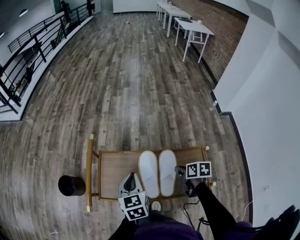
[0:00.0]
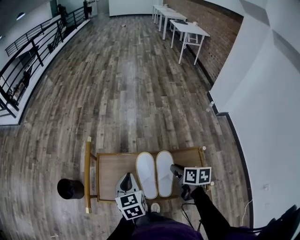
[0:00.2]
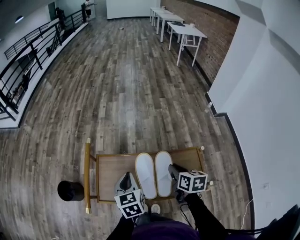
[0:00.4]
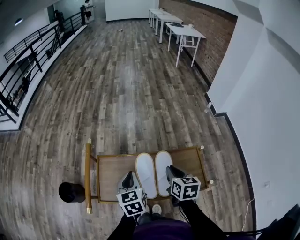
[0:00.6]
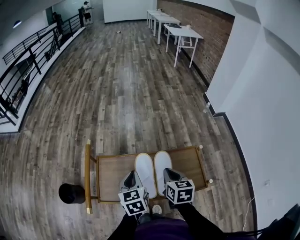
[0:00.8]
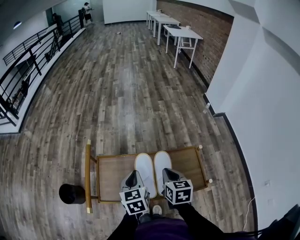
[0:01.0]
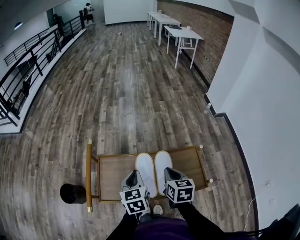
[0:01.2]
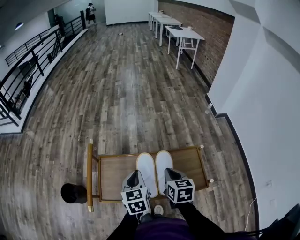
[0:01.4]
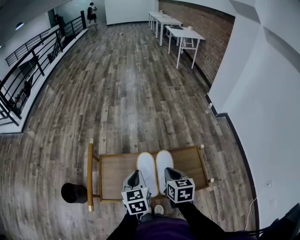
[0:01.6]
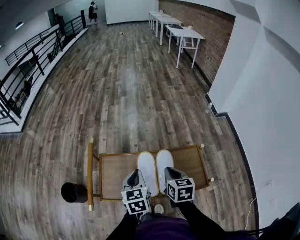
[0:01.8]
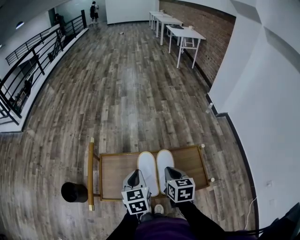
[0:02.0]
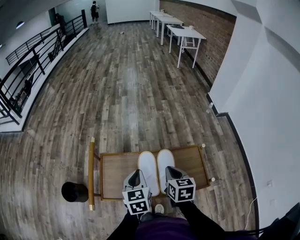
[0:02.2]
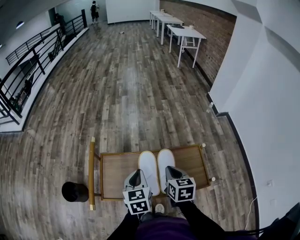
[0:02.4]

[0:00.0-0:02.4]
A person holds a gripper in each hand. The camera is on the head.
0:00.0 to 0:01.2: The right gripper goes about 10 cm upward and to the left, and changes its angle by about 30 degrees.
0:01.2 to 0:02.4: Both grippers stay about where they are.

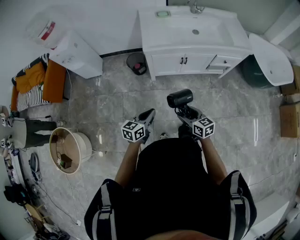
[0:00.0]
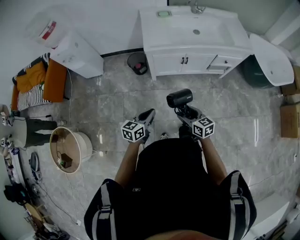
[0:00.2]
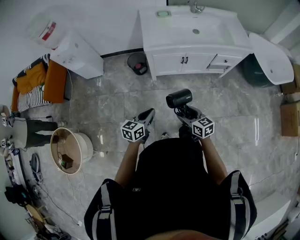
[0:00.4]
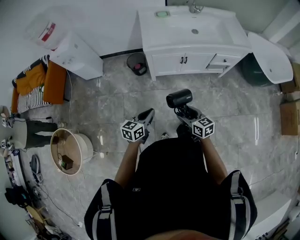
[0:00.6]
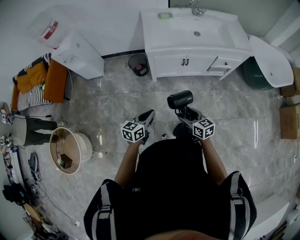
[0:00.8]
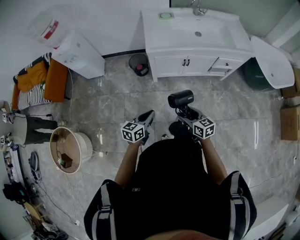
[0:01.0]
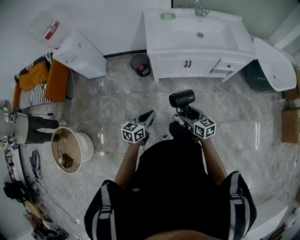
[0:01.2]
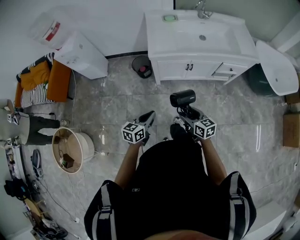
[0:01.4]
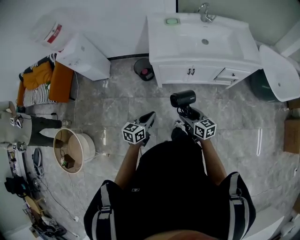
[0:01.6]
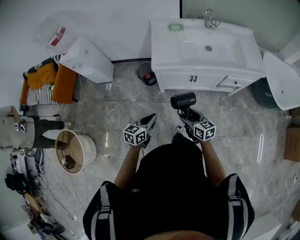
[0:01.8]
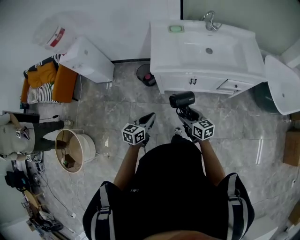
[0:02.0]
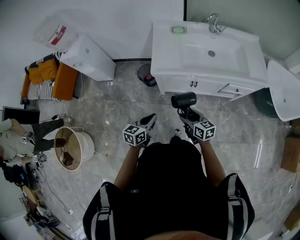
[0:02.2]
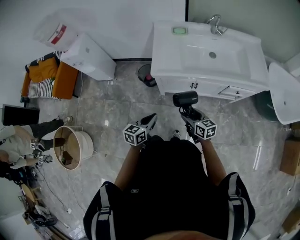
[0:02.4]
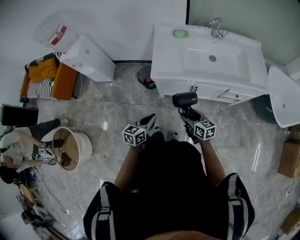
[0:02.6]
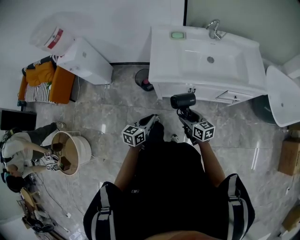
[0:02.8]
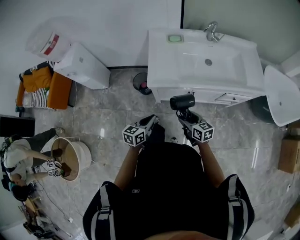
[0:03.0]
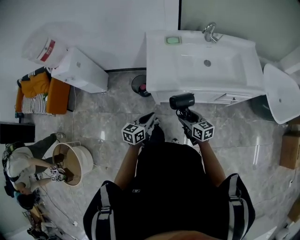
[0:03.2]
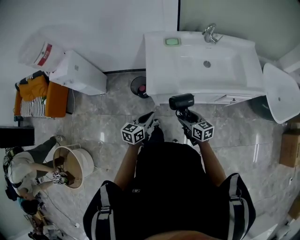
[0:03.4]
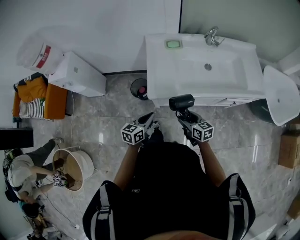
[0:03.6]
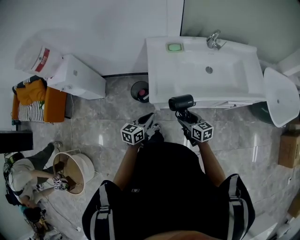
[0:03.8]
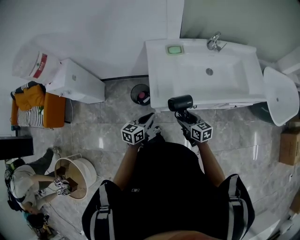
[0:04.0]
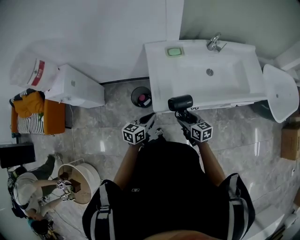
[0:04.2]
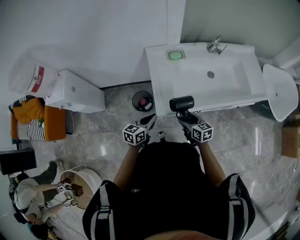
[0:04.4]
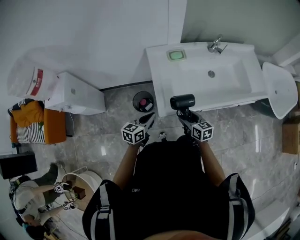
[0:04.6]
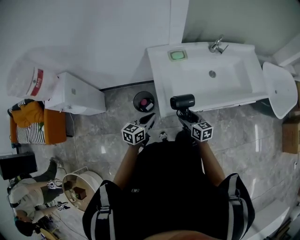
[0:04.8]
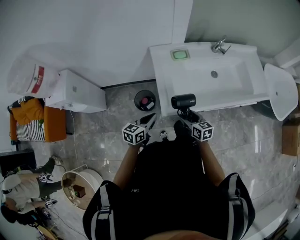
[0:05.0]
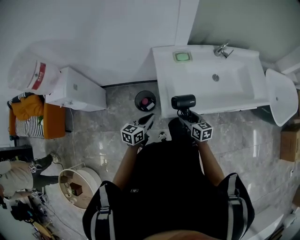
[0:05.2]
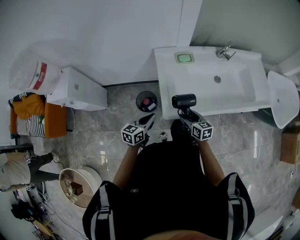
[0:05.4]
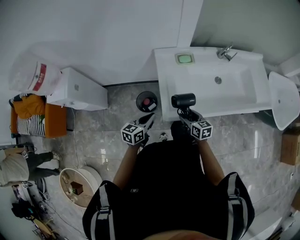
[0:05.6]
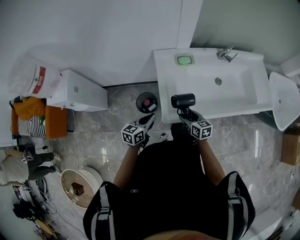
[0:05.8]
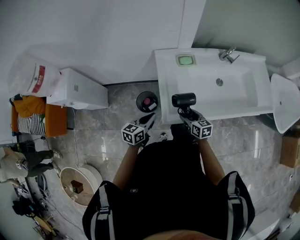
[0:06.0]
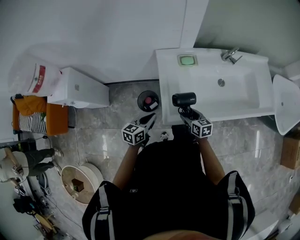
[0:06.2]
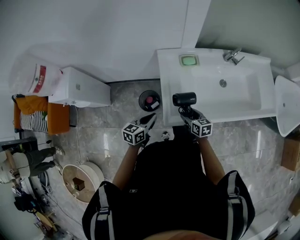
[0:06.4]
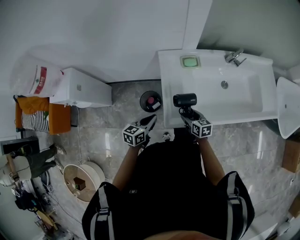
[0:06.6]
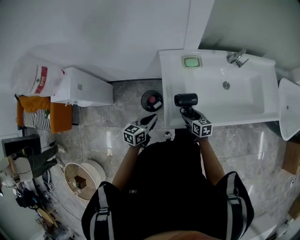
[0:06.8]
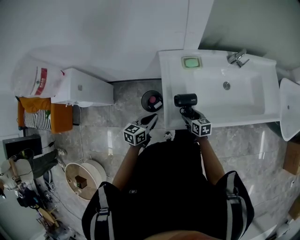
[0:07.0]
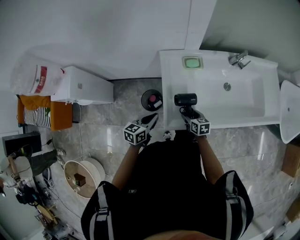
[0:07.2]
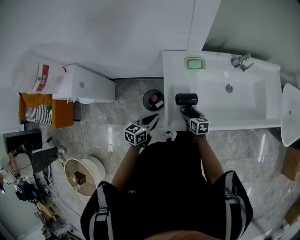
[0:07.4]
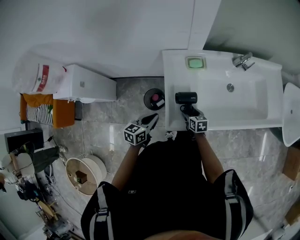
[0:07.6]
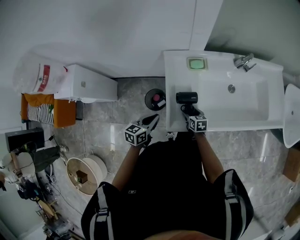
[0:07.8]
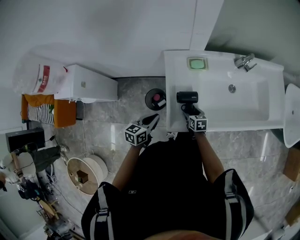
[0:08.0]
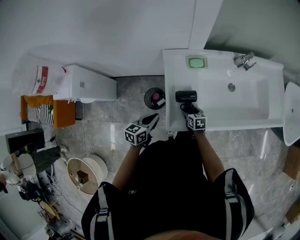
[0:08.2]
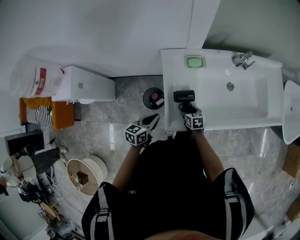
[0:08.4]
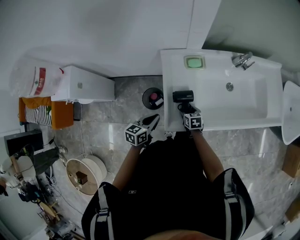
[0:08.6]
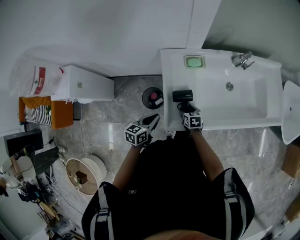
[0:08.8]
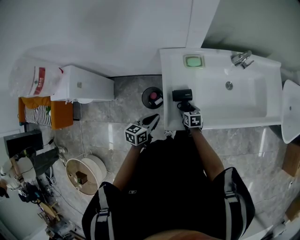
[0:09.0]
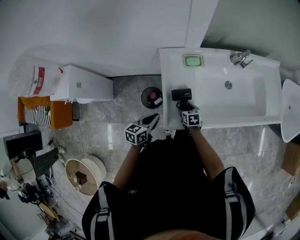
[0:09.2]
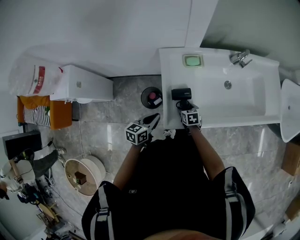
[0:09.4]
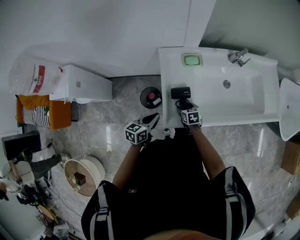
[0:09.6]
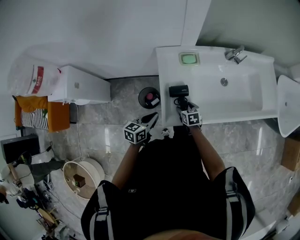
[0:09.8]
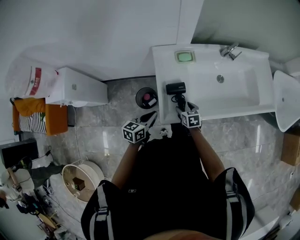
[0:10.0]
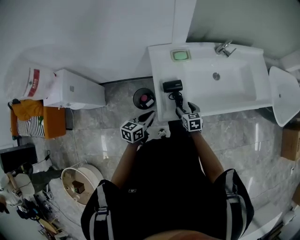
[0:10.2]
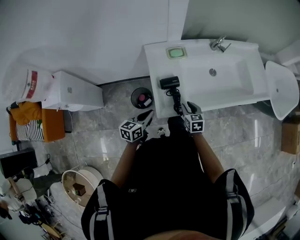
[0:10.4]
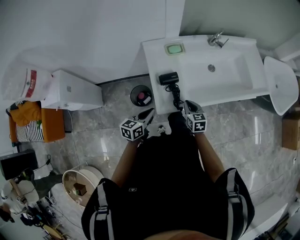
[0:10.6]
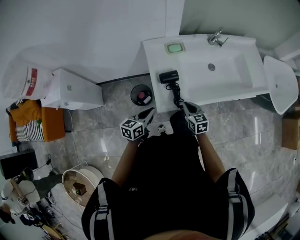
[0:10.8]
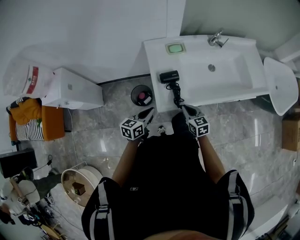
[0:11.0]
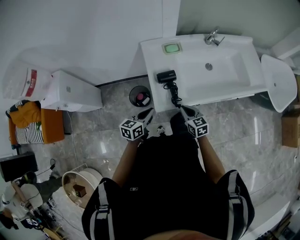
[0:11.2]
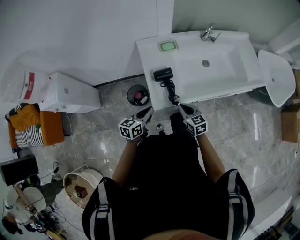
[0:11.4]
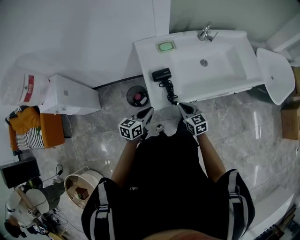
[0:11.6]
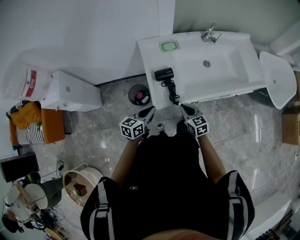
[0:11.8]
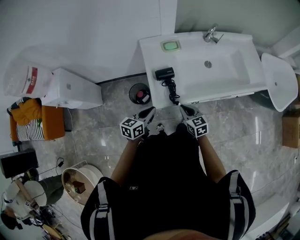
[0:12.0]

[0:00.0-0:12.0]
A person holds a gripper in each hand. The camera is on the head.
0:00.0 to 0:01.6: The grippers both shift forward by approximately 10 cm.
0:01.6 to 0:03.0: The grippers both shift forward by about 15 cm.
0:03.0 to 0:04.4: Both grippers move forward and to the left, approximately 20 cm.
0:04.4 to 0:06.0: Both grippers travel together forward, approximately 10 cm.
0:06.0 to 0:07.6: The right gripper moves downward and forward, some 10 cm.
0:07.6 to 0:09.0: There are only small adjustments of the grippers.
0:09.0 to 0:10.4: The left gripper goes approximately 5 cm backward, while the right gripper shifts approximately 15 cm upward, backward and to the right.
0:10.4 to 0:12.0: The right gripper heads backward, covering about 10 cm, and closes; the left gripper changes place by about 5 cm.

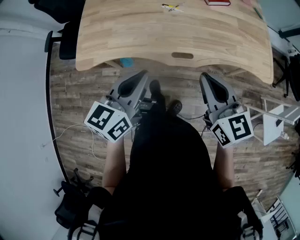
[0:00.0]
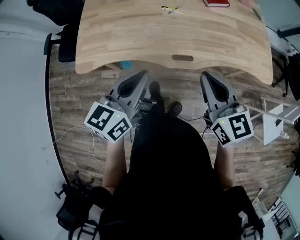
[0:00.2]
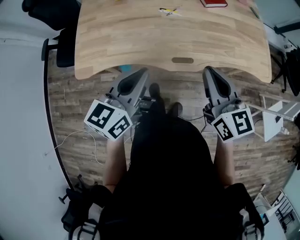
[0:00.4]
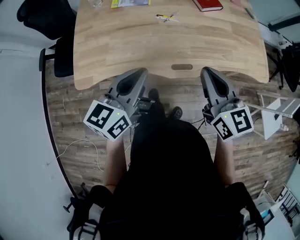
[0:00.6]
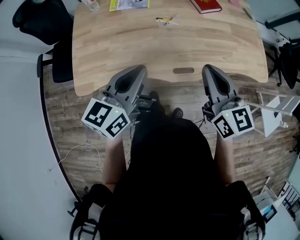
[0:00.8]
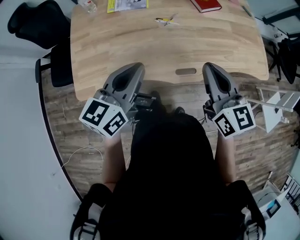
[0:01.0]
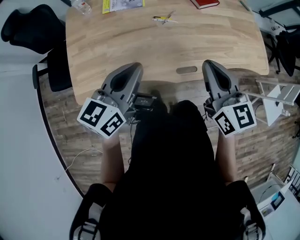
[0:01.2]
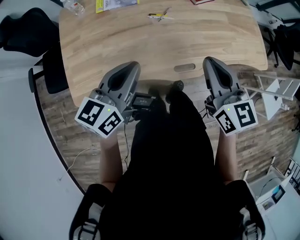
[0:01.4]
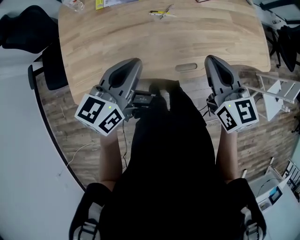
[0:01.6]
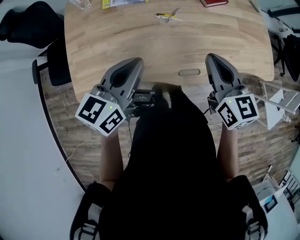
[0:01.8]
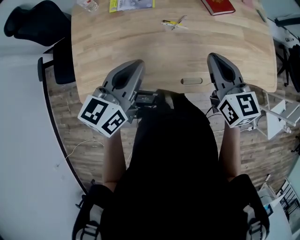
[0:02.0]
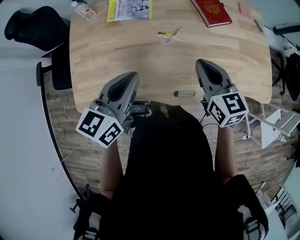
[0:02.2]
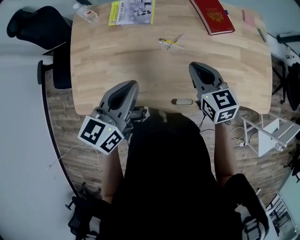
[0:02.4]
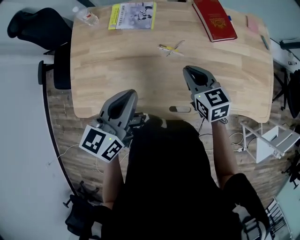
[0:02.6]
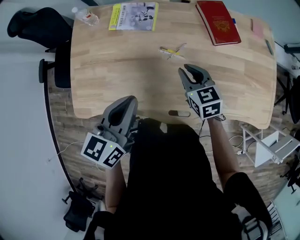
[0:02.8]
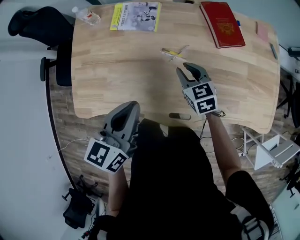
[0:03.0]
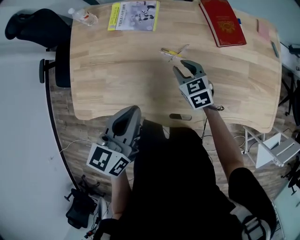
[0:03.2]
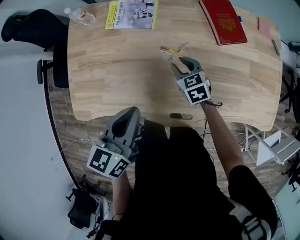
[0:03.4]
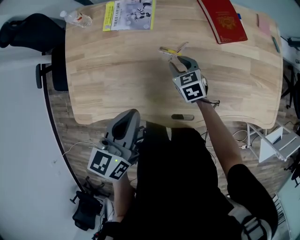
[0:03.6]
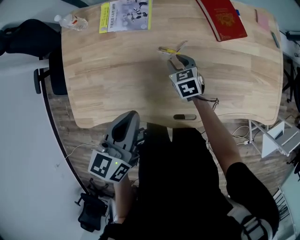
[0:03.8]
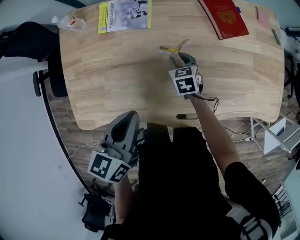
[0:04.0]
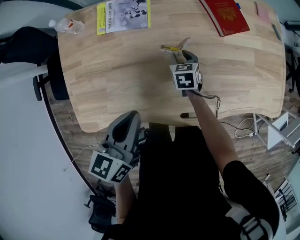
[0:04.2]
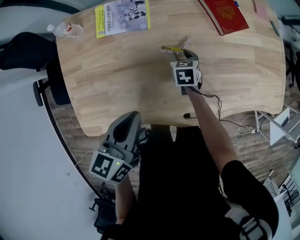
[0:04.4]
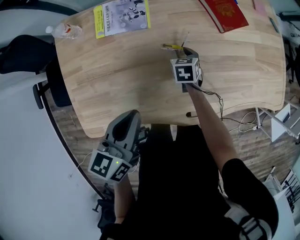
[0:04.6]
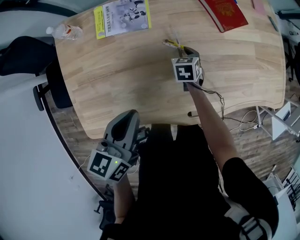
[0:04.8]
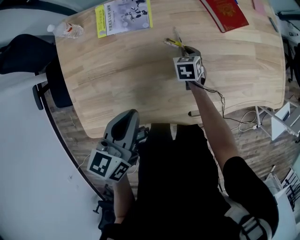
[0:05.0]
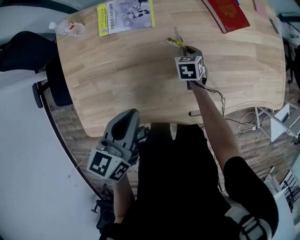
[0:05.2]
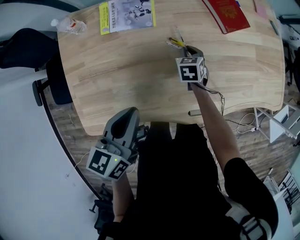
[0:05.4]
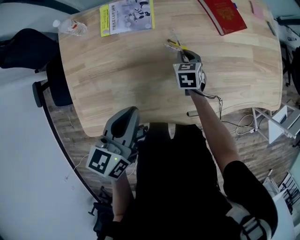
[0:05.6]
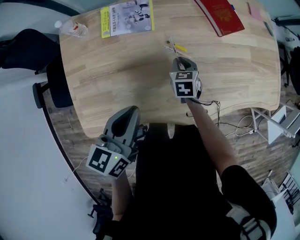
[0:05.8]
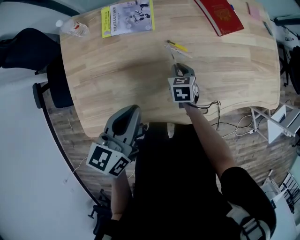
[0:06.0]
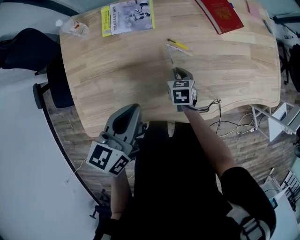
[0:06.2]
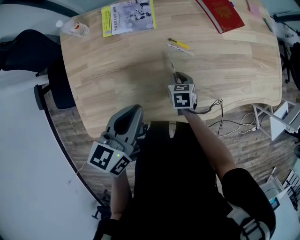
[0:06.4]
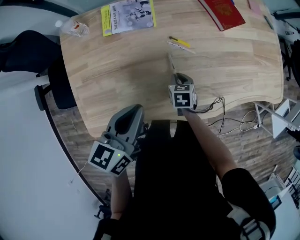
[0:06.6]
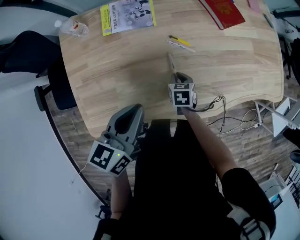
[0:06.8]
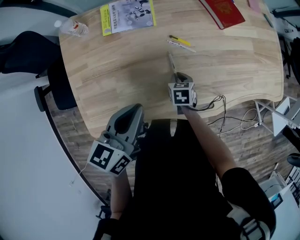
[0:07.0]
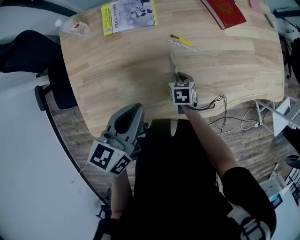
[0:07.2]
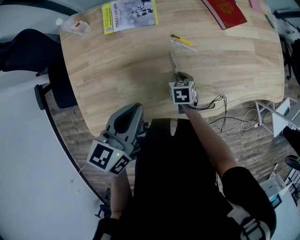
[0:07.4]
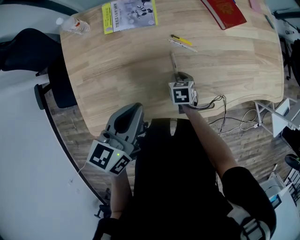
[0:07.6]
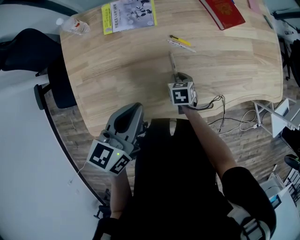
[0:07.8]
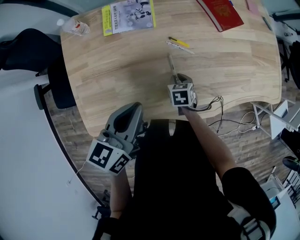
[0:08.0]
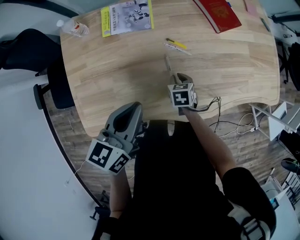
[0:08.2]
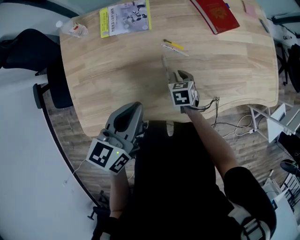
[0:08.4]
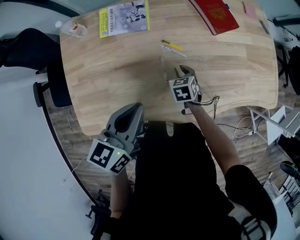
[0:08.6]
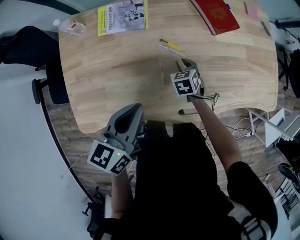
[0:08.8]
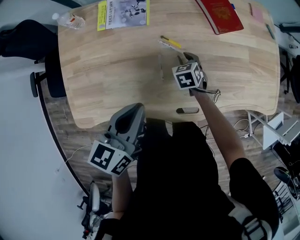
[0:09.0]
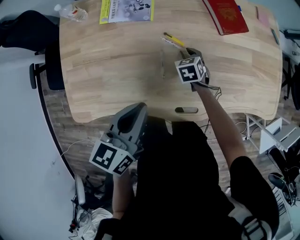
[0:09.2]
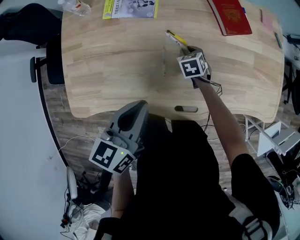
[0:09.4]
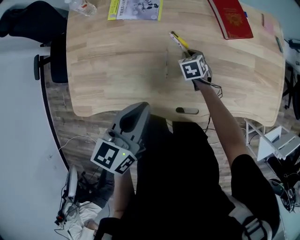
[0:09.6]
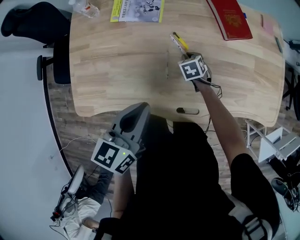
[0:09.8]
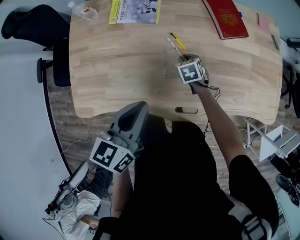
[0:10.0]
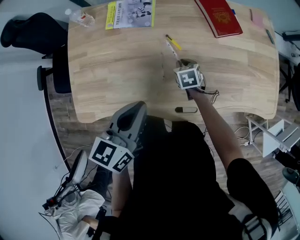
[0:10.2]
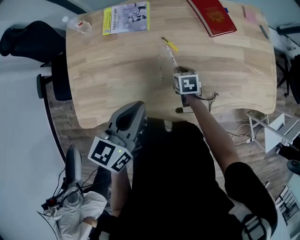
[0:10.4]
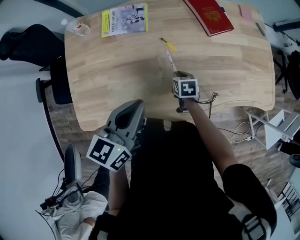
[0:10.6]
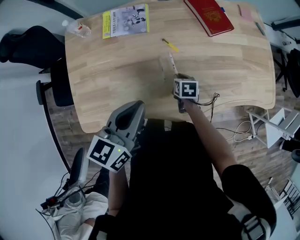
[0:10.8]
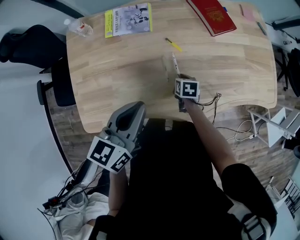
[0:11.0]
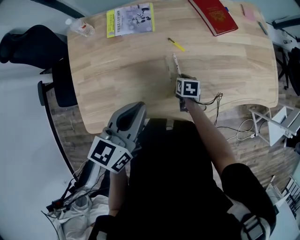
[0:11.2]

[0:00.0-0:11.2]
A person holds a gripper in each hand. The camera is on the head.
0:00.0 to 0:01.6: Both grippers travel together forward and to the left, roughly 20 cm.
0:01.6 to 0:03.2: The right gripper goes some 30 cm forward and downward, swivels some 40 degrees, and opens. The left gripper shifts approximately 10 cm forward, and swivels roughly 20 degrees.
0:03.2 to 0:04.8: The left gripper ends up roughly 10 cm from where it was; the right gripper is displaced downward by approximately 10 cm, and changes its angle by roughly 40 degrees.
0:04.8 to 0:06.4: The right gripper shifts some 15 cm backward.
0:06.4 to 0:08.0: The grippers make only small movements.
0:08.0 to 0:09.6: The right gripper is displaced forward and to the right by roughly 15 cm, and changes its angle by approximately 20 degrees. The left gripper is displaced to the right by about 10 cm.
0:09.6 to 0:11.2: The right gripper goes roughly 10 cm backward, and swivels about 40 degrees, while the left gripper moves to the left, some 5 cm.
